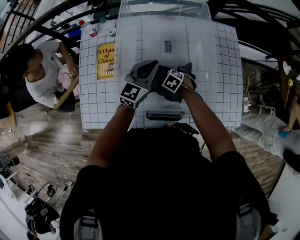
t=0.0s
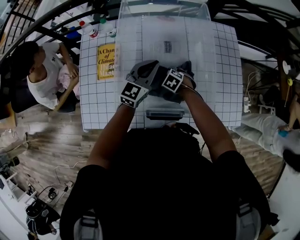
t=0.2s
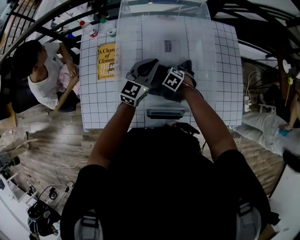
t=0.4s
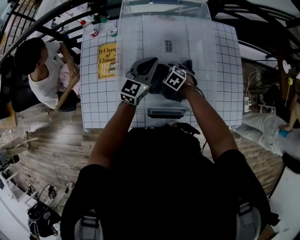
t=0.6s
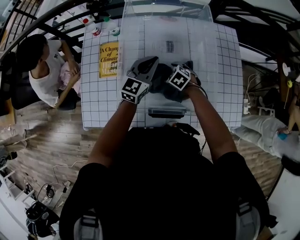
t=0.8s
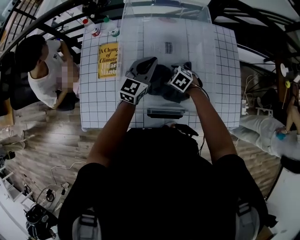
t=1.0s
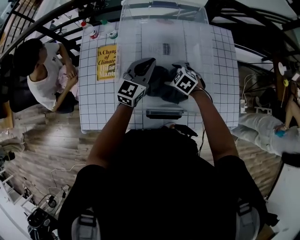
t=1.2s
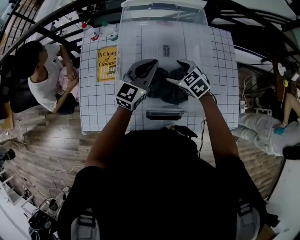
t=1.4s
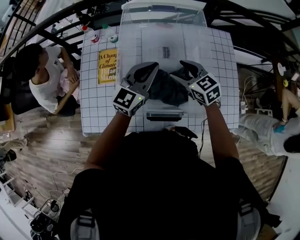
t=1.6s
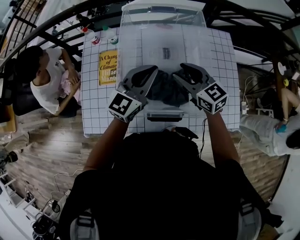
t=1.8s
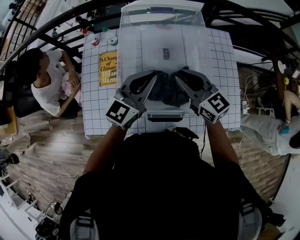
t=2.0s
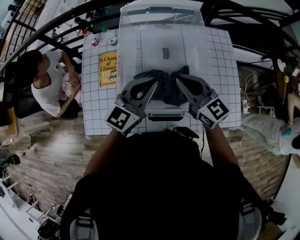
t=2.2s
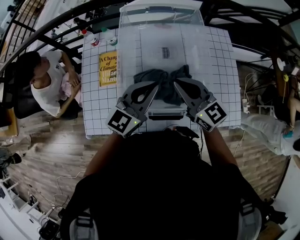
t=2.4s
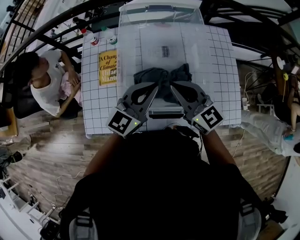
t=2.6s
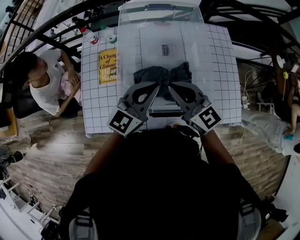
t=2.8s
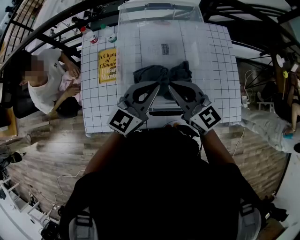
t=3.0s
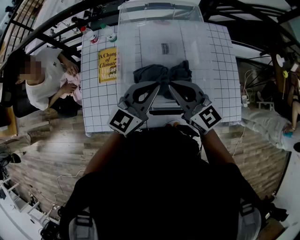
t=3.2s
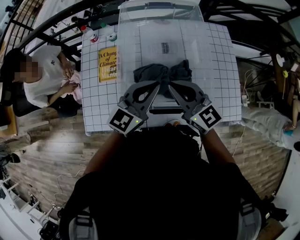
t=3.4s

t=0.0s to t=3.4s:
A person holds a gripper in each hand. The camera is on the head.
t=0.0s to t=1.6s: The right gripper moves upward, roughly 25 cm, and angles its fingers upward, by approximately 40 degrees. The left gripper goes approximately 10 cm upward.
t=1.6s to t=3.4s: The left gripper shifts approximately 10 cm backward. The right gripper goes approximately 15 cm backward and upward, swivels some 20 degrees, and closes its fingers.

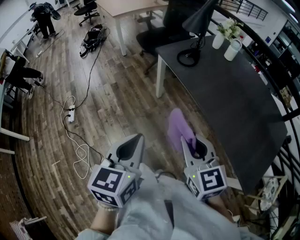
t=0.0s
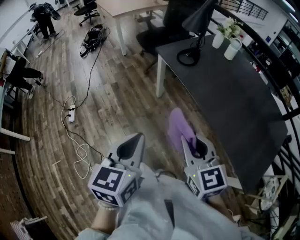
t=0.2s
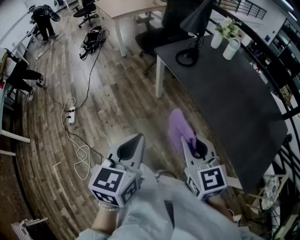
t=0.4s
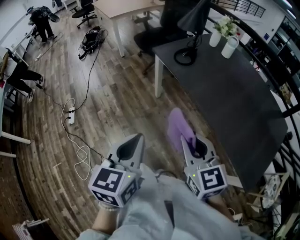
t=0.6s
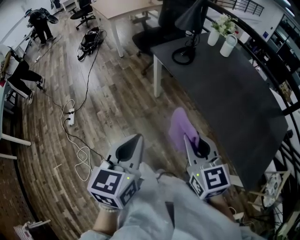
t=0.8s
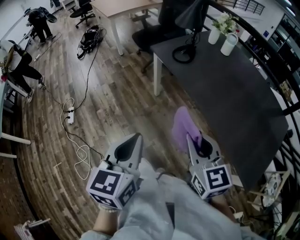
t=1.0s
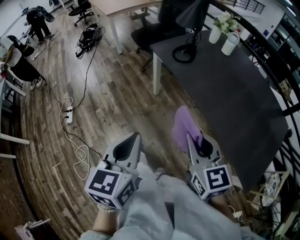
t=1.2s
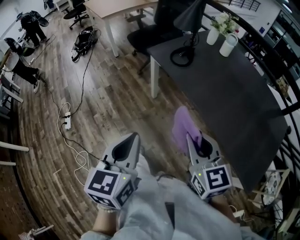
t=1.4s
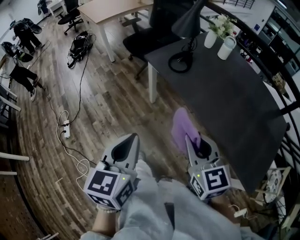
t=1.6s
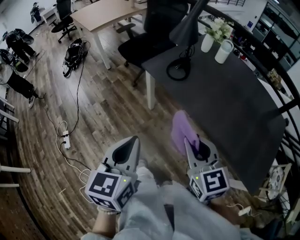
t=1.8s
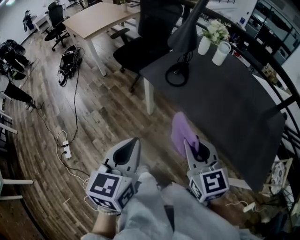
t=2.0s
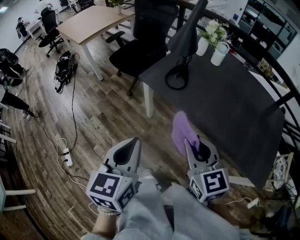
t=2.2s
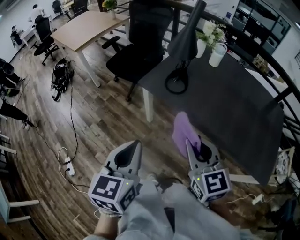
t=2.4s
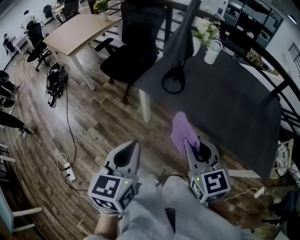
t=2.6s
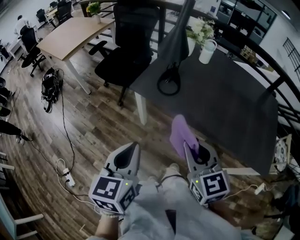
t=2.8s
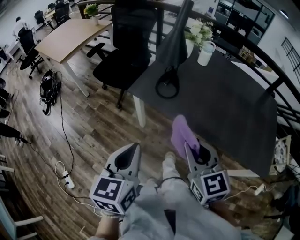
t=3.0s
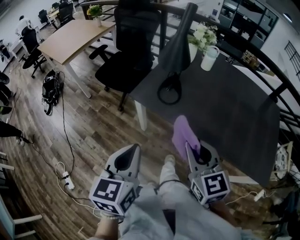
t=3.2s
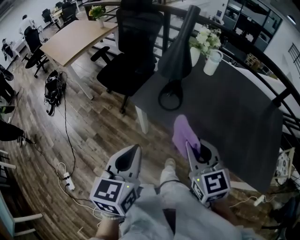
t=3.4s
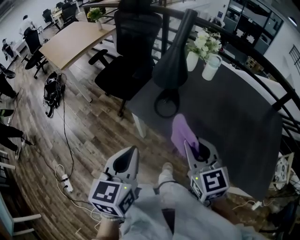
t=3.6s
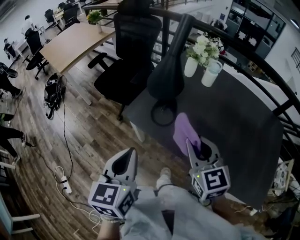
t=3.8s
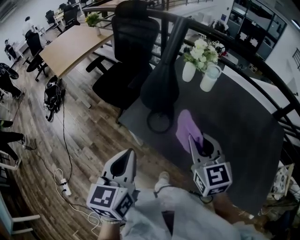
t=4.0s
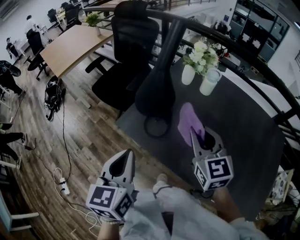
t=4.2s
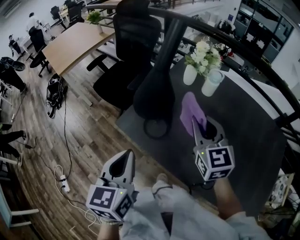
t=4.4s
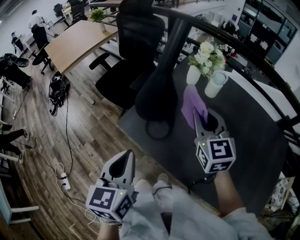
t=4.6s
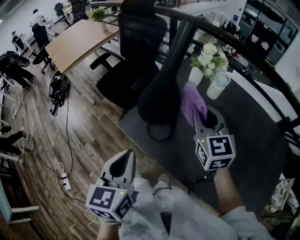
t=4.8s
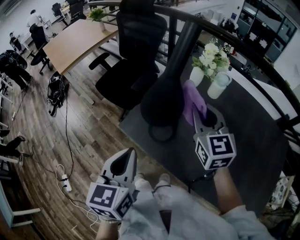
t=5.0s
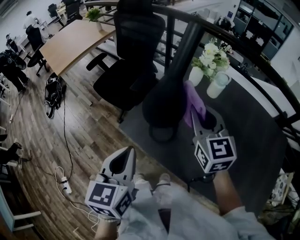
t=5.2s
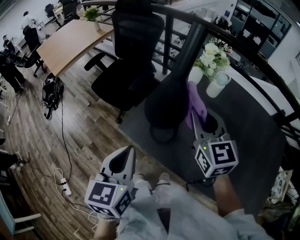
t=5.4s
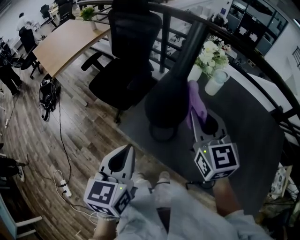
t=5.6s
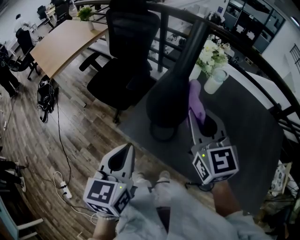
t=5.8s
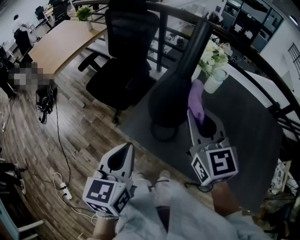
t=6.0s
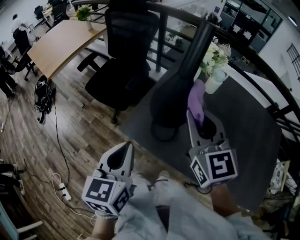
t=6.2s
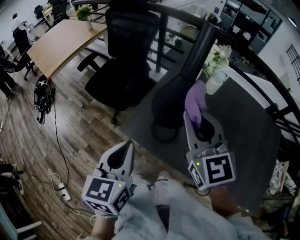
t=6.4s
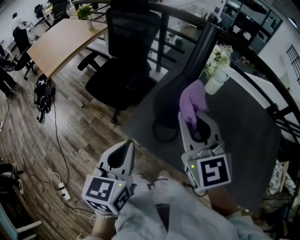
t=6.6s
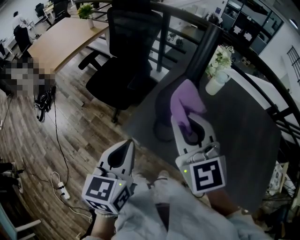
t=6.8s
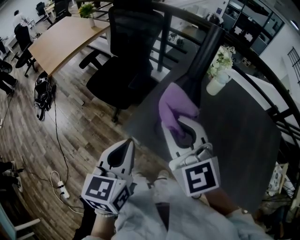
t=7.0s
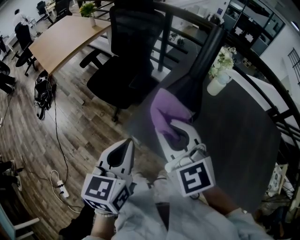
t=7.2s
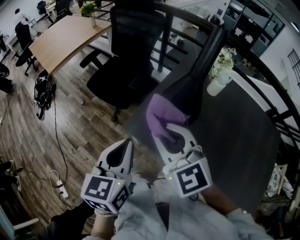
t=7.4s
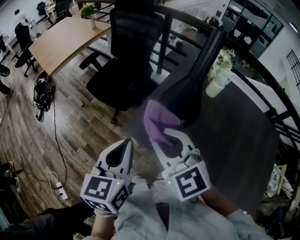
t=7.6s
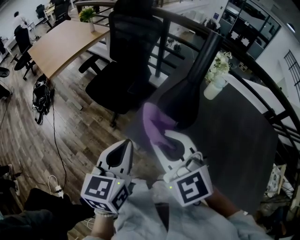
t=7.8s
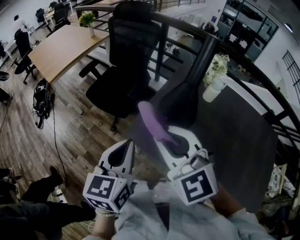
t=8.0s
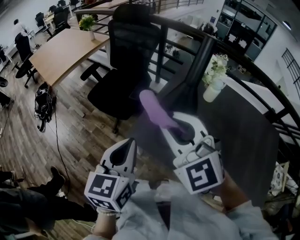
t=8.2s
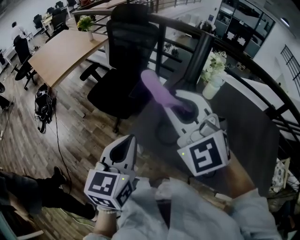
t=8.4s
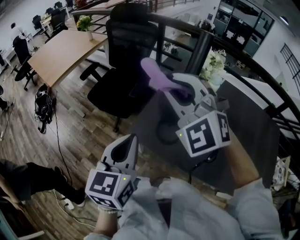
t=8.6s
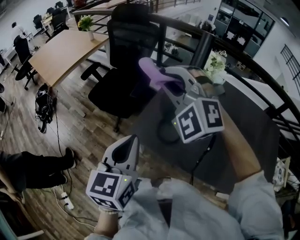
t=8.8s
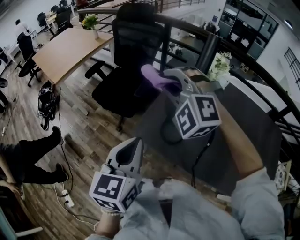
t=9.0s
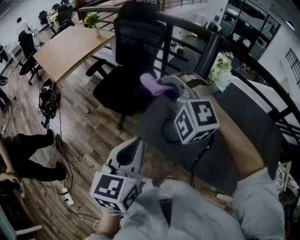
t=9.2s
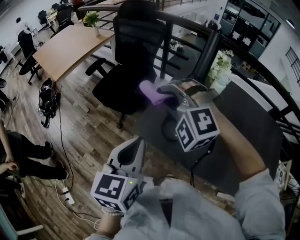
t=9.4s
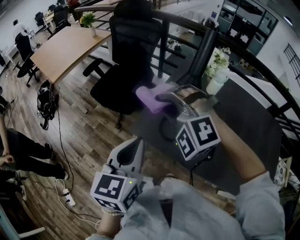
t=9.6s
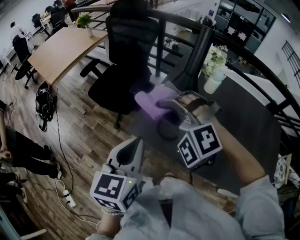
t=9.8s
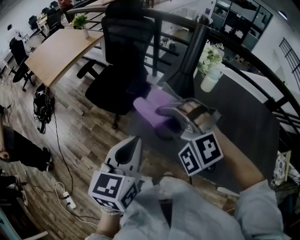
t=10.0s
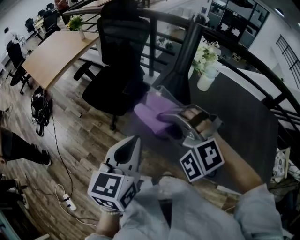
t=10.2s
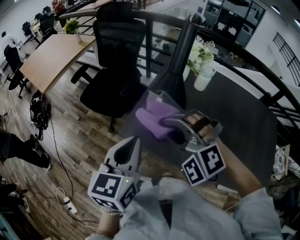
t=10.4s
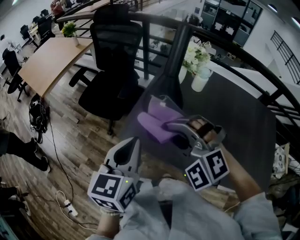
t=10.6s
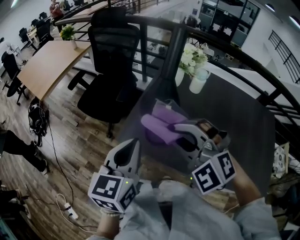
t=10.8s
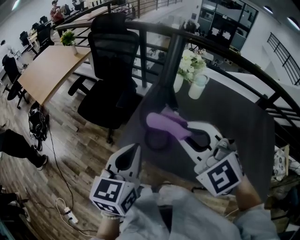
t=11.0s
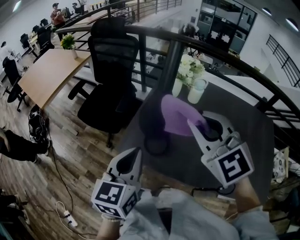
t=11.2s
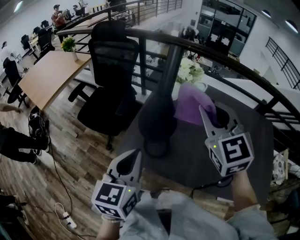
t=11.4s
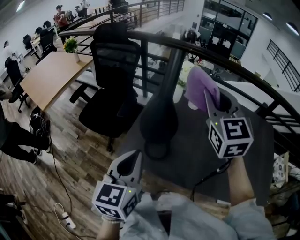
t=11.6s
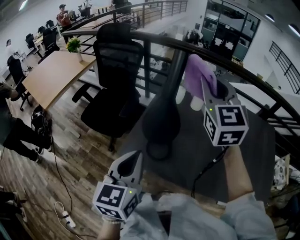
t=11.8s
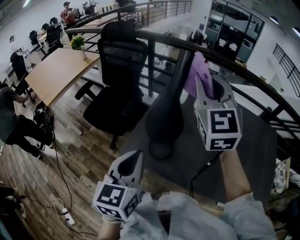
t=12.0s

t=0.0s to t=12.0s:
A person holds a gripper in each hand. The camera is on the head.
t=0.0s to t=1.6s: The two grippers go some 10 cm forward.
t=1.6s to t=3.0s: Both grippers move forward and to the left, approximately 15 cm. The left gripper rotates about 20 degrees.
t=3.0s to t=4.4s: The left gripper heads forward and to the right, covering about 20 cm. The right gripper moves forward and to the right, about 35 cm.
t=4.4s to t=6.0s: The right gripper heads to the left and upward, covering some 10 cm. The left gripper is displaced to the left and forward by approximately 10 cm.
t=6.0s to t=7.6s: The right gripper travels to the left by about 15 cm, and rotates some 30 degrees.
t=7.6s to t=9.0s: The right gripper is displaced forward and upward by approximately 15 cm, and rolls counterclockwise, seen from behind, by some 50 degrees.
t=9.0s to t=10.4s: The right gripper moves backward and downward, roughly 15 cm.
t=10.4s to t=12.0s: The right gripper heads upward, forward and to the right, covering roughly 25 cm, and tips its fingers upward by about 30 degrees.

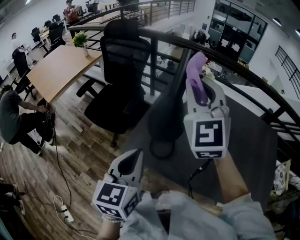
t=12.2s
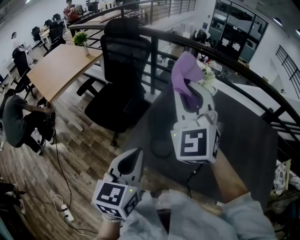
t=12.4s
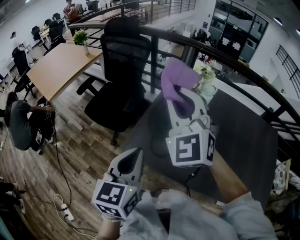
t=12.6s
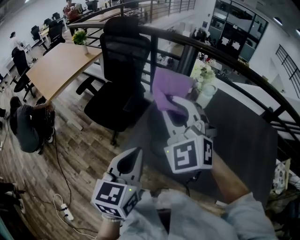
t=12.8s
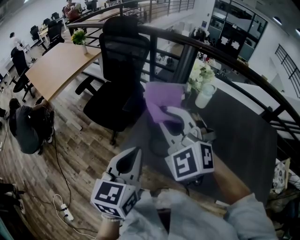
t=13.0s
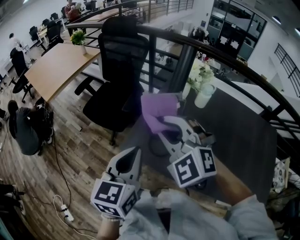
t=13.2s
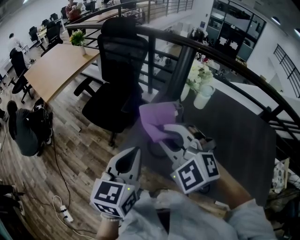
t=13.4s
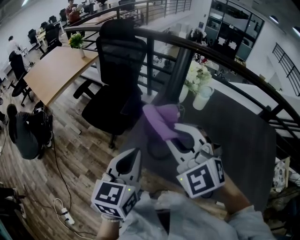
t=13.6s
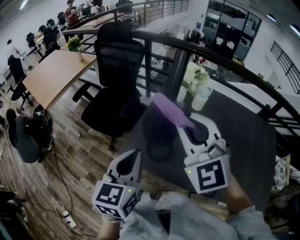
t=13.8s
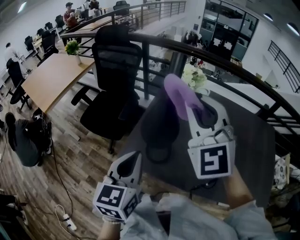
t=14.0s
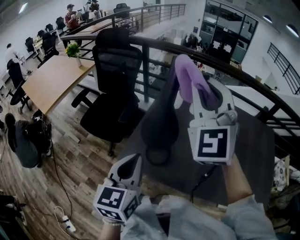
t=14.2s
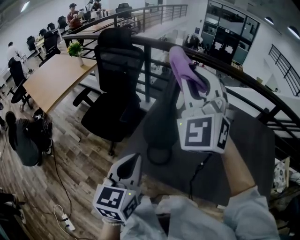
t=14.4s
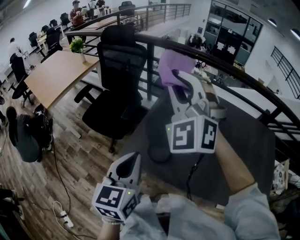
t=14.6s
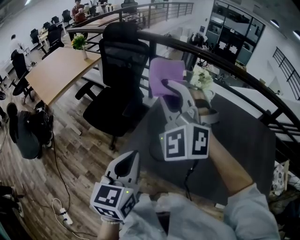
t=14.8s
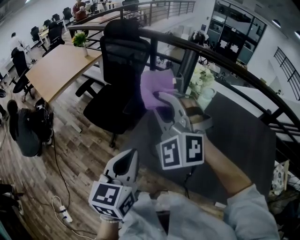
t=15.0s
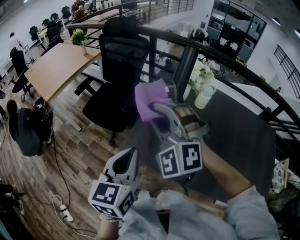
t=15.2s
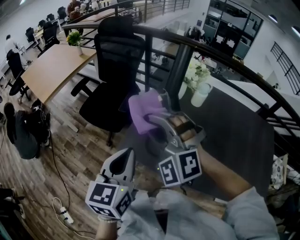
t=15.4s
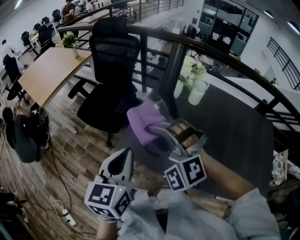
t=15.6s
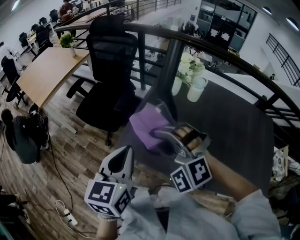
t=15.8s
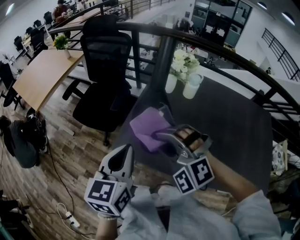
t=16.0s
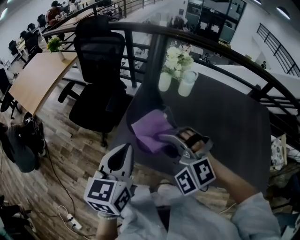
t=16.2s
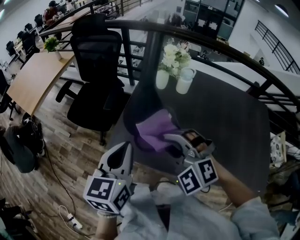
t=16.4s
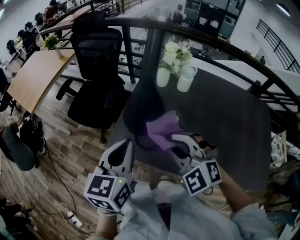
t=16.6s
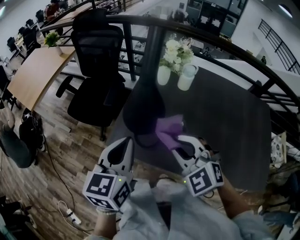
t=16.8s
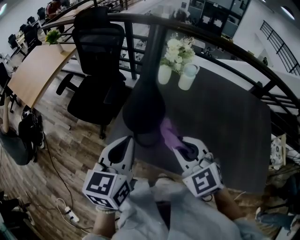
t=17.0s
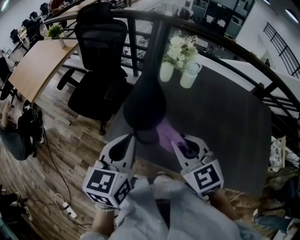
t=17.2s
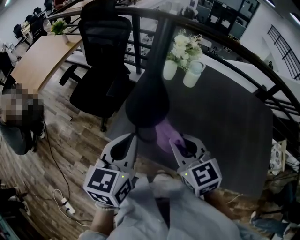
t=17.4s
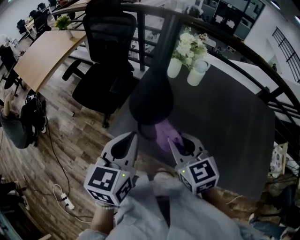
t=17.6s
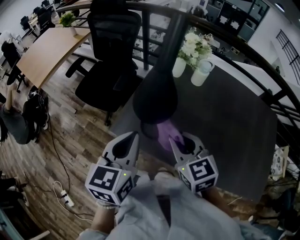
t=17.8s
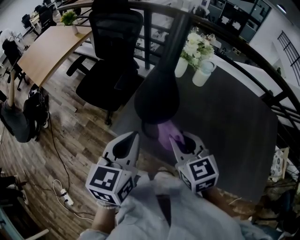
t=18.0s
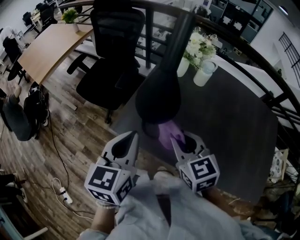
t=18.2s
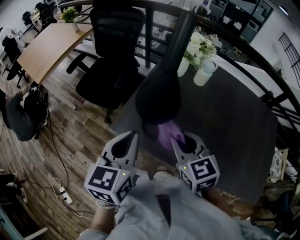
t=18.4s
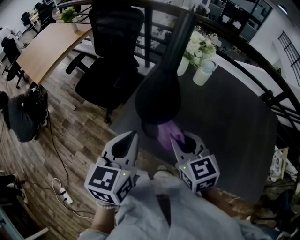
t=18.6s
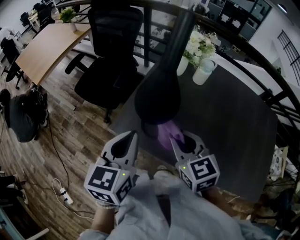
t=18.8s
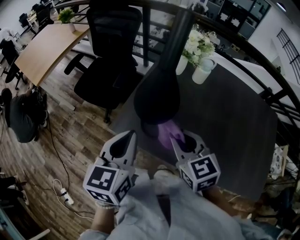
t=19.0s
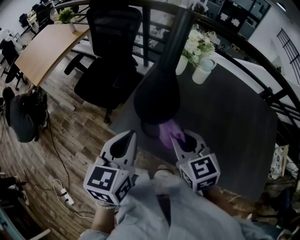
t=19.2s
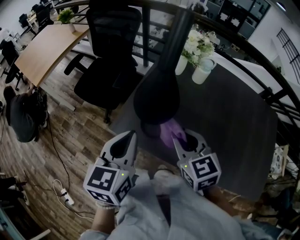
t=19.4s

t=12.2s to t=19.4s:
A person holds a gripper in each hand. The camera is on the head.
t=12.2s to t=13.6s: The right gripper shifts some 15 cm downward, backward and to the left, and swivels about 30 degrees.
t=13.6s to t=15.0s: The right gripper moves forward and to the left, roughly 10 cm, travels upward and back again, approximately 15 cm each way, and changes its angle by approximately 20 degrees.
t=15.0s to t=16.6s: The left gripper changes place by some 5 cm. Meanwhile the right gripper is displaced downward, backward and to the right by approximately 20 cm, and rotates about 30 degrees.
t=16.6s to t=18.0s: The right gripper rolls clockwise, seen from behind, by roughly 50 degrees.
t=18.0s to t=19.4s: The grippers make only small movements.

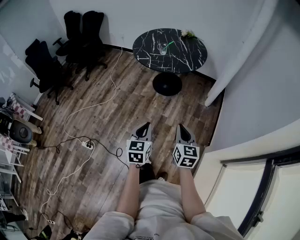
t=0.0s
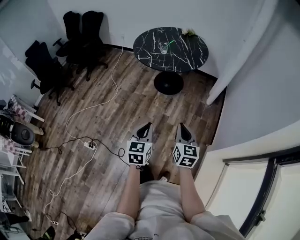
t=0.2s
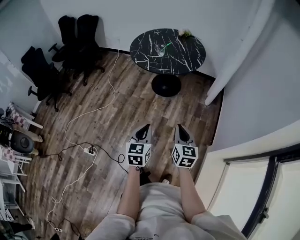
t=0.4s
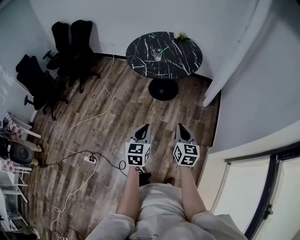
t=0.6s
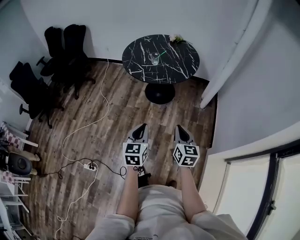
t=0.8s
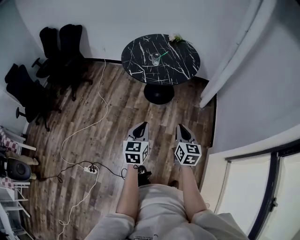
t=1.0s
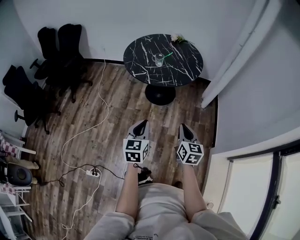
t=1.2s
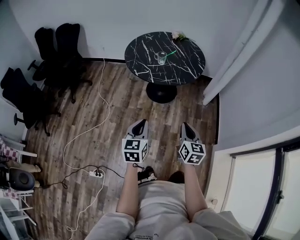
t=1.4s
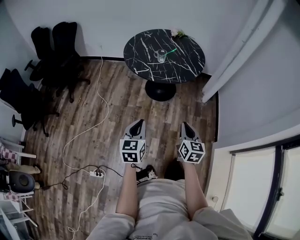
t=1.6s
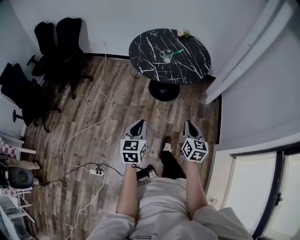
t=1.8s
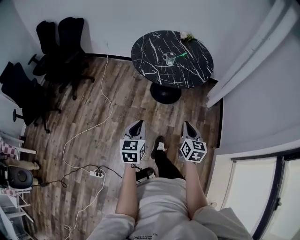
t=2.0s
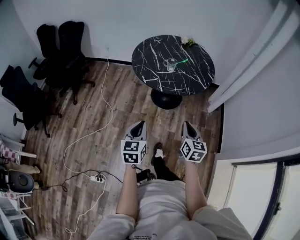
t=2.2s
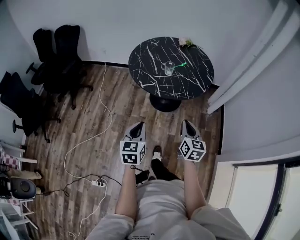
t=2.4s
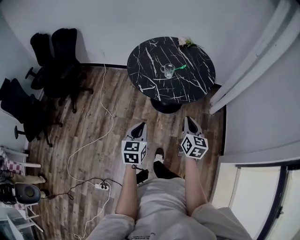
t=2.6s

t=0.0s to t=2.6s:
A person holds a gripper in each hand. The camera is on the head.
t=0.0s to t=1.2s: The grippers both shift forward and to the left by approximately 25 cm.
t=1.2s to t=2.6s: Both grippers move forward and to the left, approximately 25 cm.
